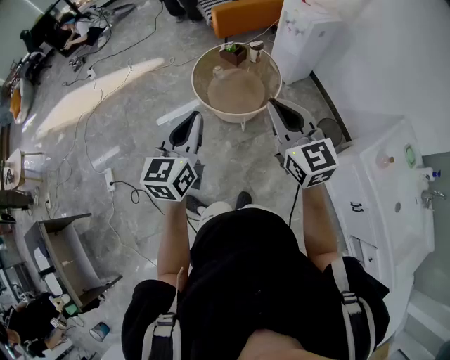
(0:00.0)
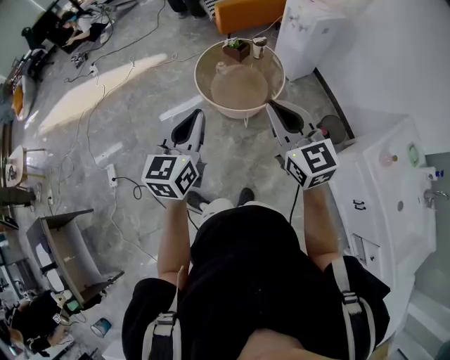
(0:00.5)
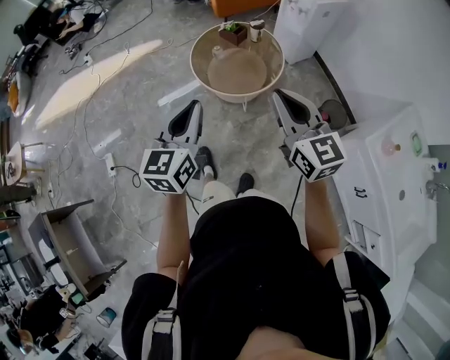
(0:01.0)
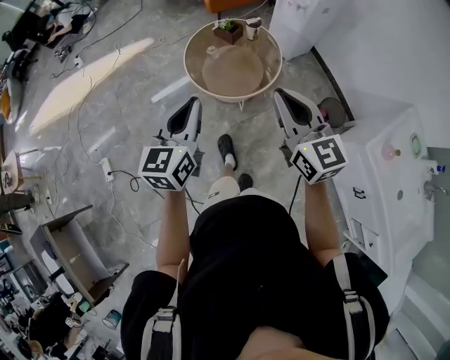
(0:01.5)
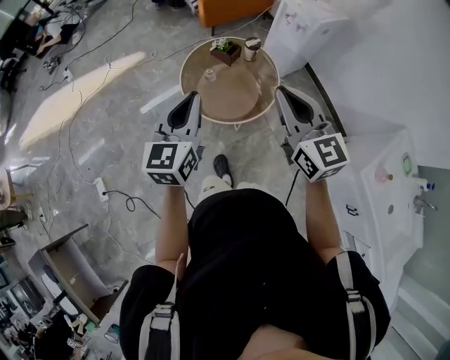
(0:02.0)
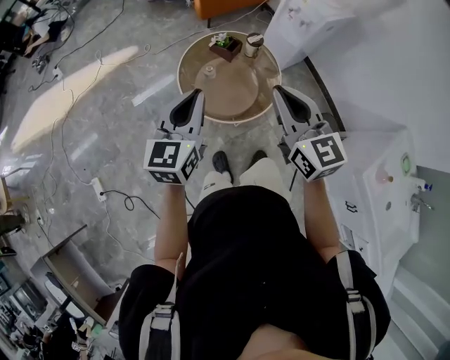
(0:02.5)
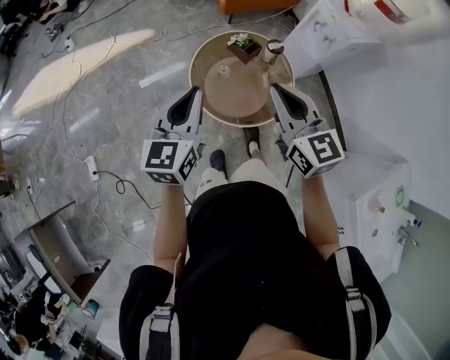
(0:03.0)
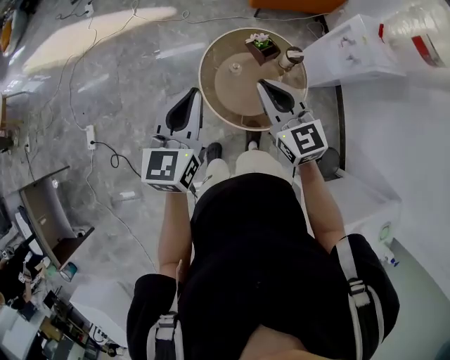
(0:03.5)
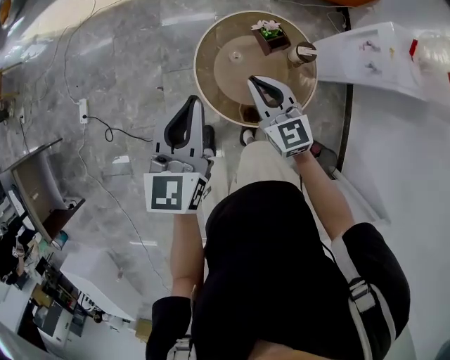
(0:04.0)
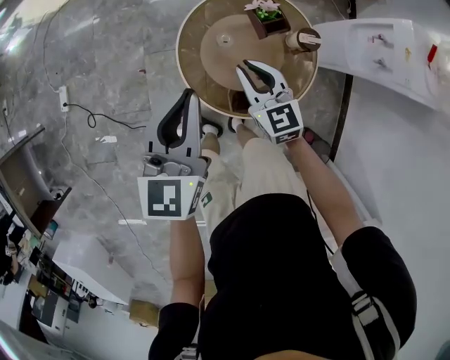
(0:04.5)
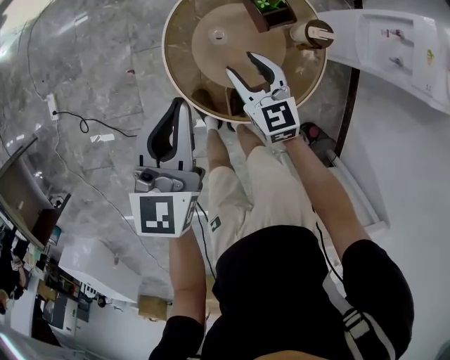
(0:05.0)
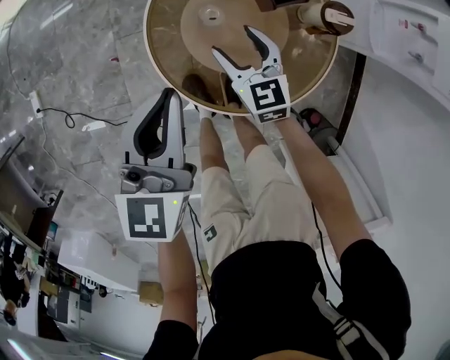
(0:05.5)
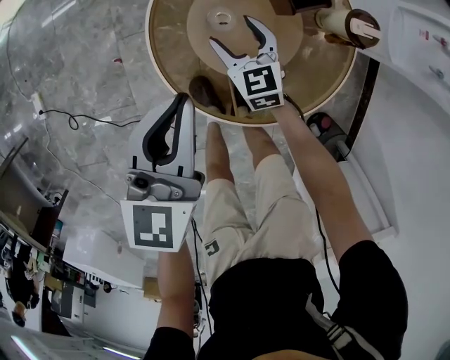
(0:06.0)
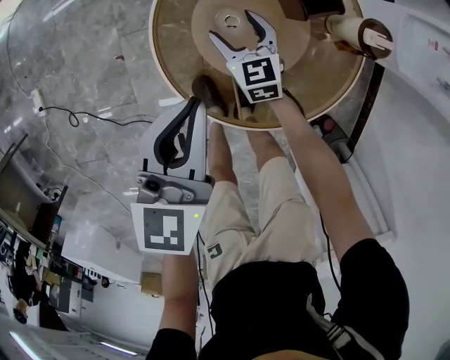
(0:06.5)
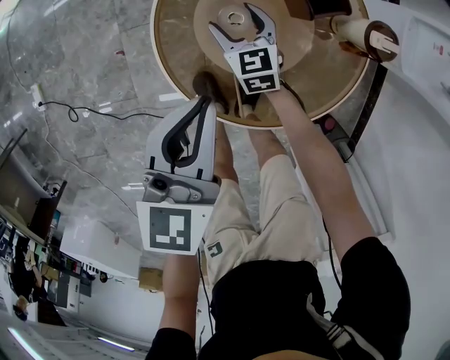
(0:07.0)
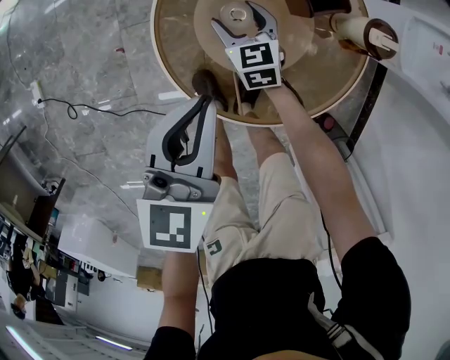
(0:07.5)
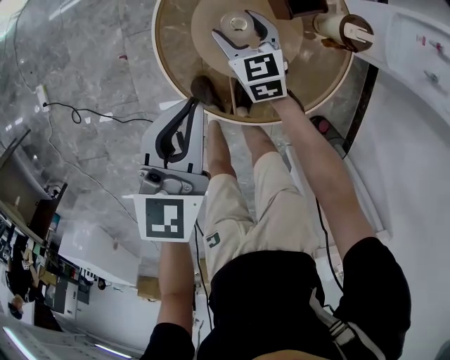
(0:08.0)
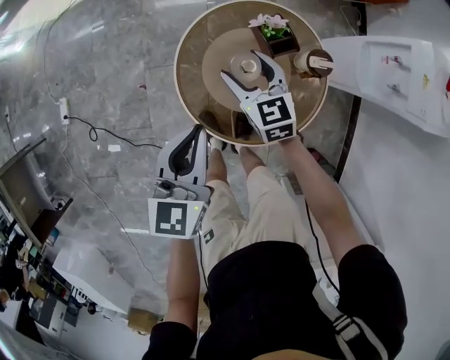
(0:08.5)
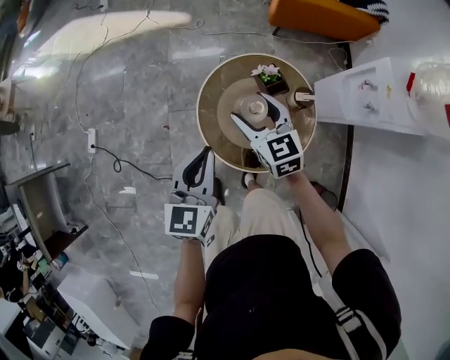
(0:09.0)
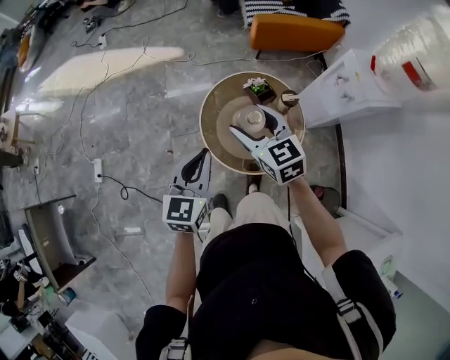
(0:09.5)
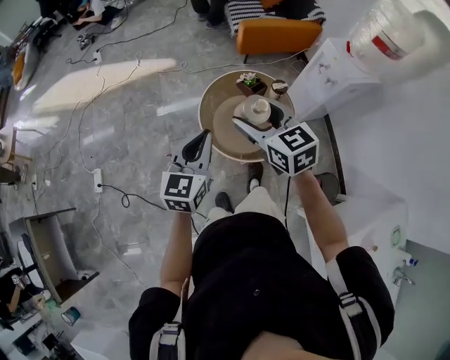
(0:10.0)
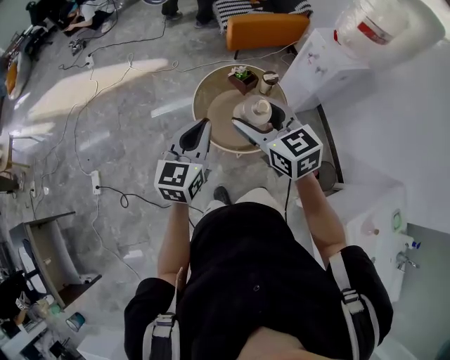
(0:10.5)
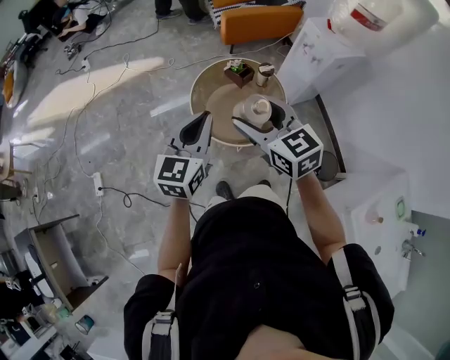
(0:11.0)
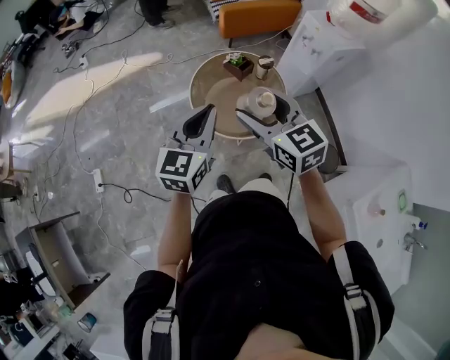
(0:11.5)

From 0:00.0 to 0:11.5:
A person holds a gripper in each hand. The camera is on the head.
From 0:00.0 to 0:02.0: Both grippers move forward, approximately 20 cm.
From 0:02.0 to 0:04.0: The left gripper moves about 20 cm, and changes its angle by about 30 degrees; the right gripper moves approximately 35 cm, and rotates approximately 40 degrees.
From 0:04.0 to 0:06.0: Both grippers travel together downward, approximately 35 cm. The right gripper opens.
From 0:06.0 to 0:07.5: The right gripper shifts by about 5 cm.
From 0:07.5 to 0:09.5: The left gripper shifts some 30 cm upward; the right gripper shifts roughly 50 cm upward.
From 0:09.5 to 0:11.5: The left gripper travels backward and upward by some 15 cm. The right gripper is displaced backward and upward by some 20 cm.

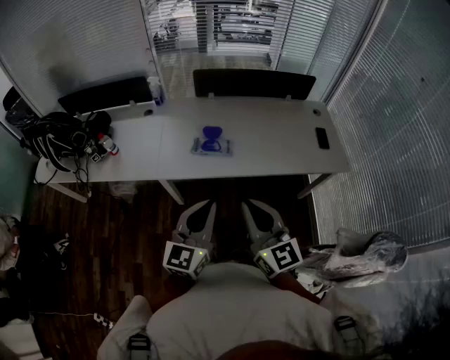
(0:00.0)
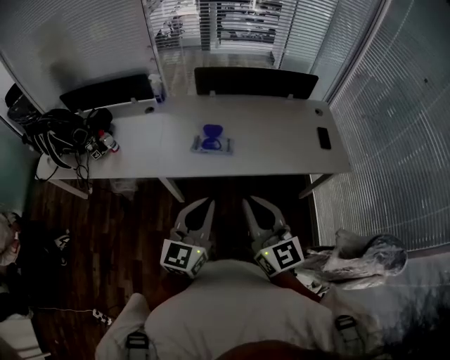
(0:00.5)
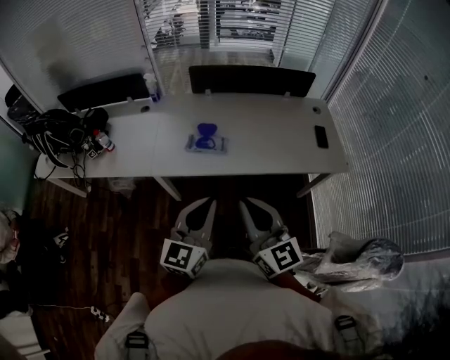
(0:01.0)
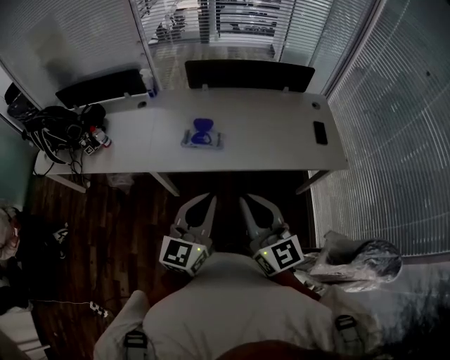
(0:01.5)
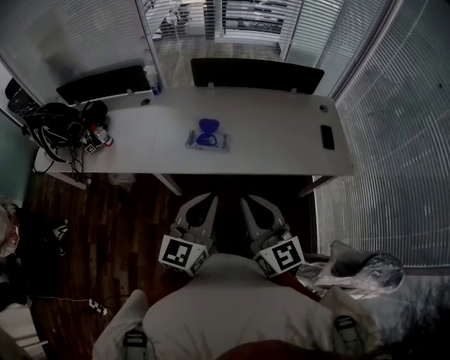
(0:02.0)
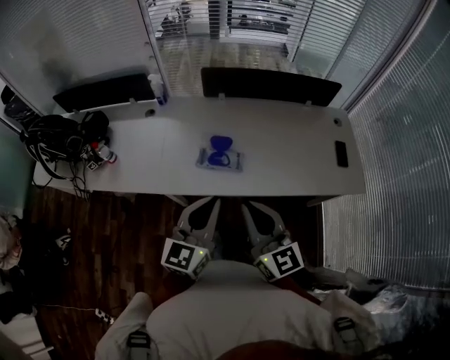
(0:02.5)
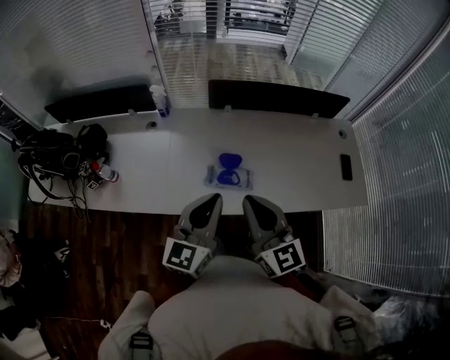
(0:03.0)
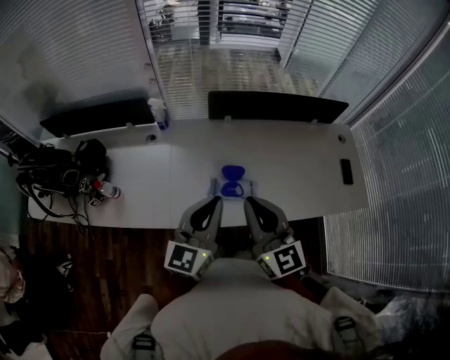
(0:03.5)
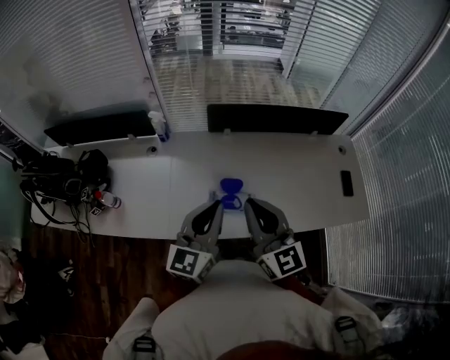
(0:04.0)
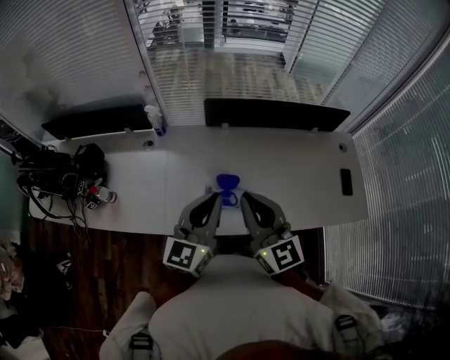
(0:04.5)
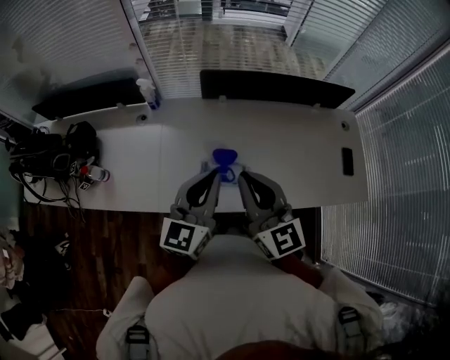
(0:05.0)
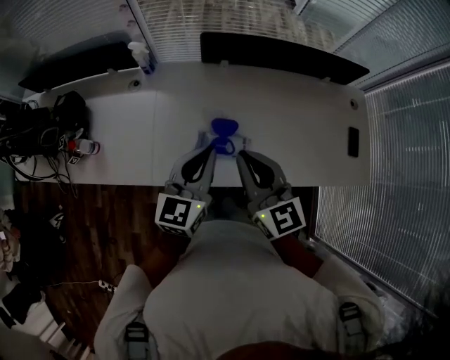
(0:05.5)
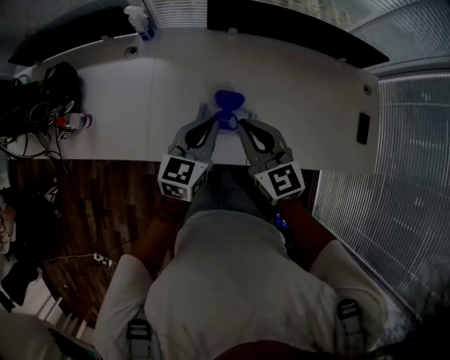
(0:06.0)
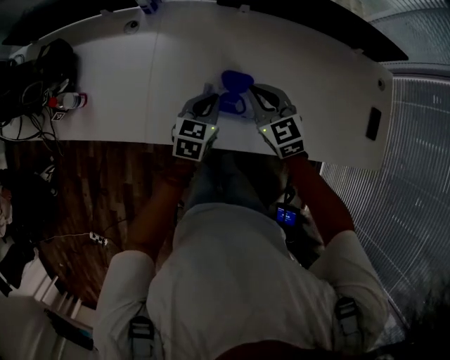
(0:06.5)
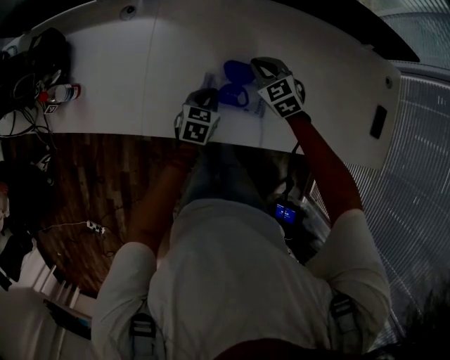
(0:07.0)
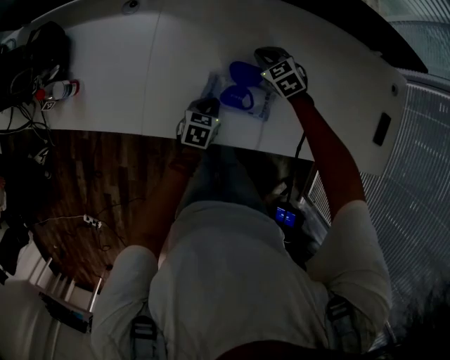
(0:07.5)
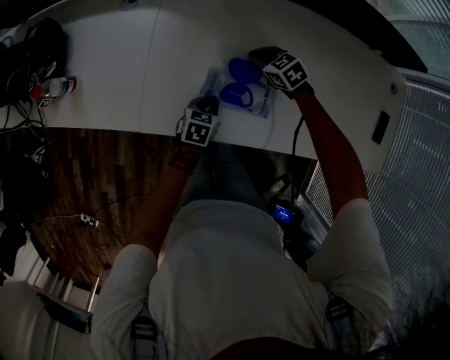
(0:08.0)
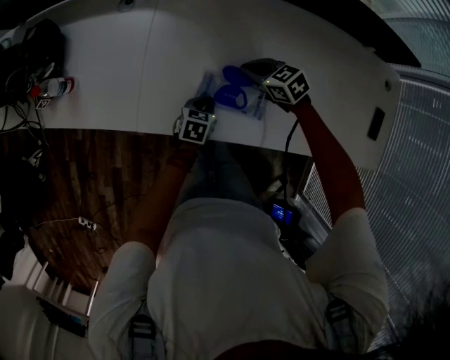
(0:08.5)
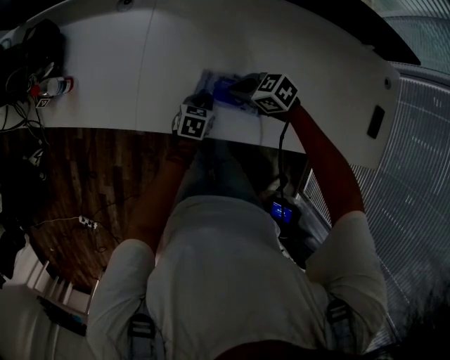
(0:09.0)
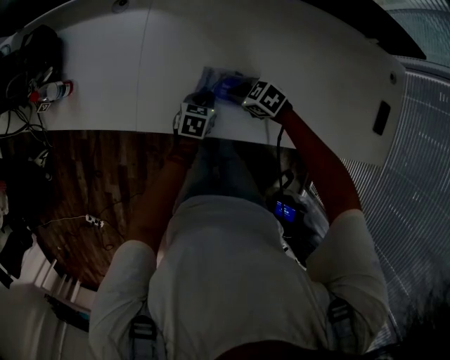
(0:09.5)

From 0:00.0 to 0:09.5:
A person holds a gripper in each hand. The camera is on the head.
From 0:00.0 to 0:02.0: The right gripper moves roughly 5 cm. The left gripper heads to the right, covering about 5 cm.
From 0:02.0 to 0:04.0: Both grippers travel together forward and to the left, some 30 cm.
From 0:04.0 to 0:05.5: Both grippers move downward, about 10 cm.
From 0:05.5 to 0:07.5: The left gripper heads downward, covering some 40 cm, and tips its fingers downward by about 40 degrees. The right gripper shifts approximately 40 cm downward and forward, and points its fingers about 40 degrees further downward.
From 0:07.5 to 0:09.5: The right gripper changes place by approximately 20 cm, and turns by some 30 degrees.

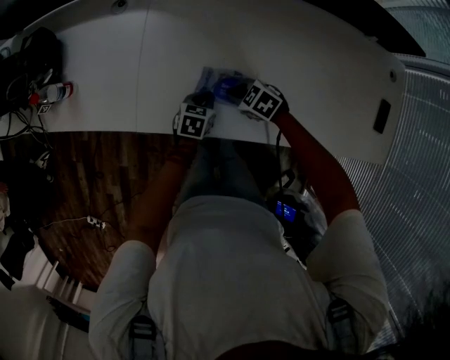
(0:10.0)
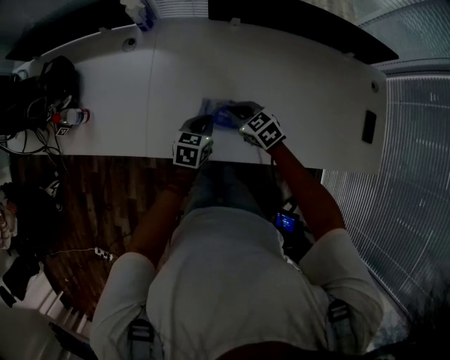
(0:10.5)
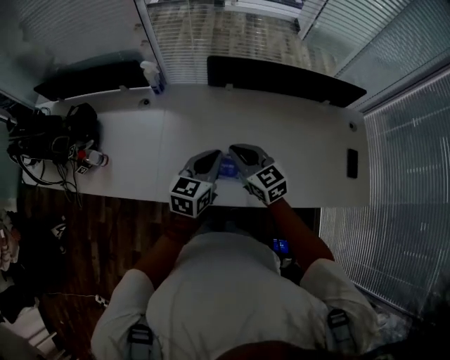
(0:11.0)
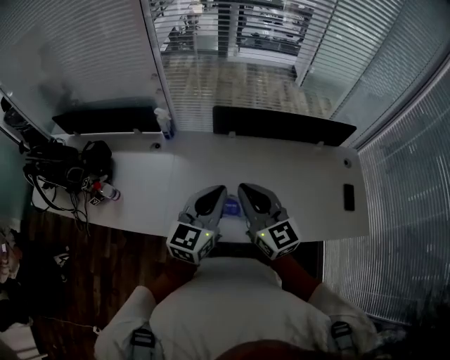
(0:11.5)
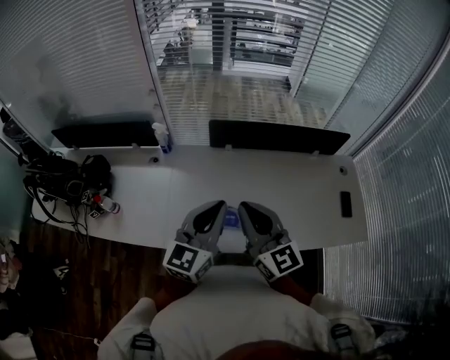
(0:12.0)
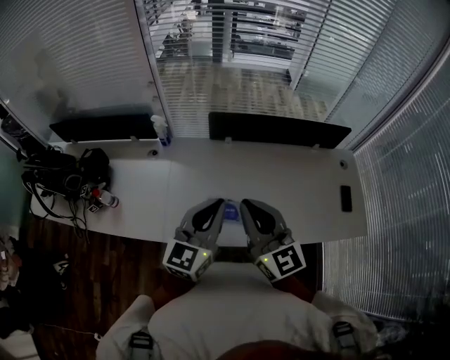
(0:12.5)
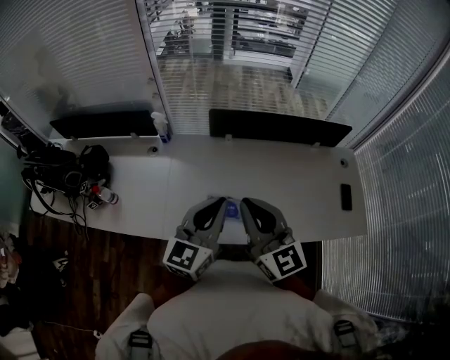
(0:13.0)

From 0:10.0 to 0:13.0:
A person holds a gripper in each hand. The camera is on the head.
From 0:10.0 to 0:11.5: Both grippers move upward, about 40 cm. The right gripper angles its fingers upward, by approximately 50 degrees. Meanwhile the left gripper tips its fingers upward by roughly 50 degrees.
From 0:11.5 to 0:13.0: The right gripper goes approximately 5 cm upward.

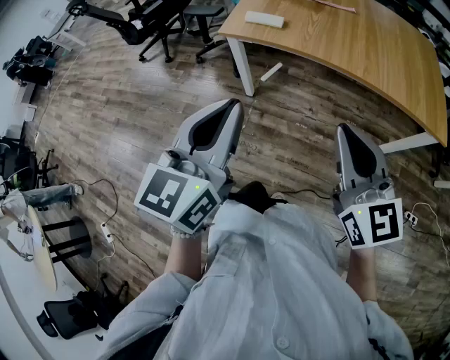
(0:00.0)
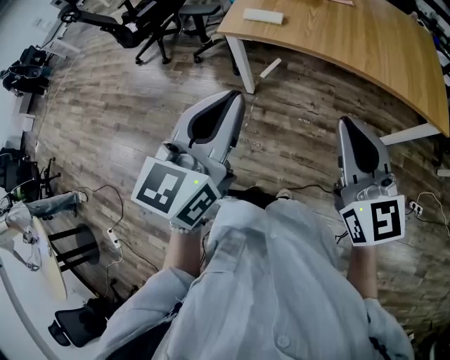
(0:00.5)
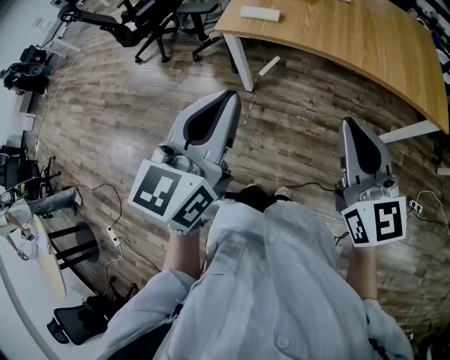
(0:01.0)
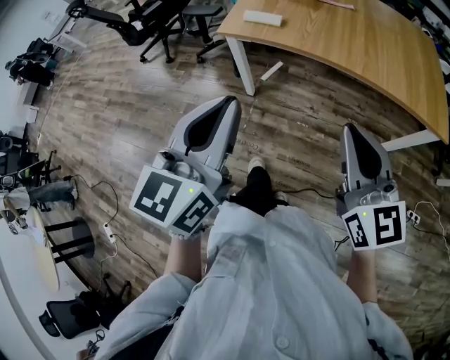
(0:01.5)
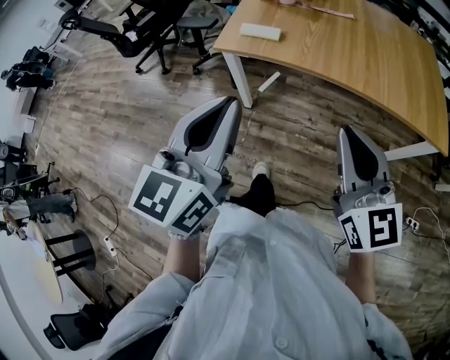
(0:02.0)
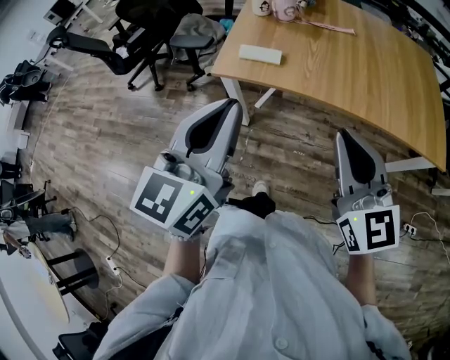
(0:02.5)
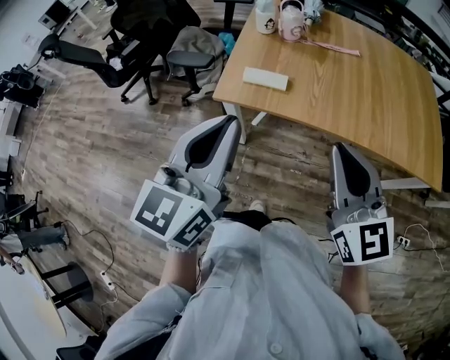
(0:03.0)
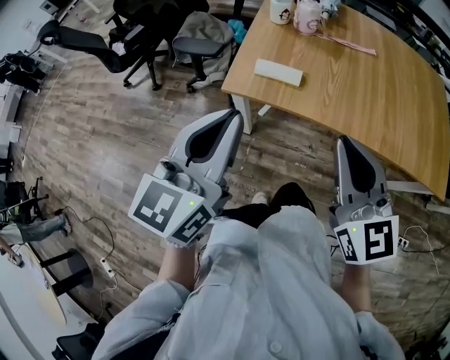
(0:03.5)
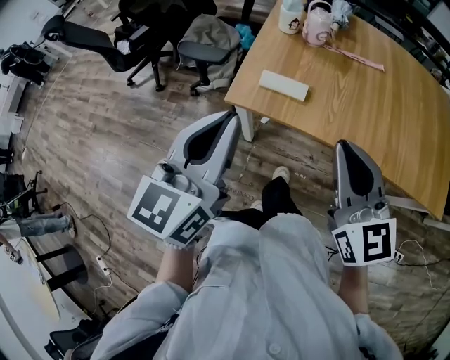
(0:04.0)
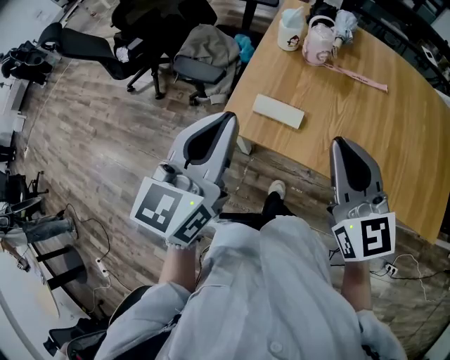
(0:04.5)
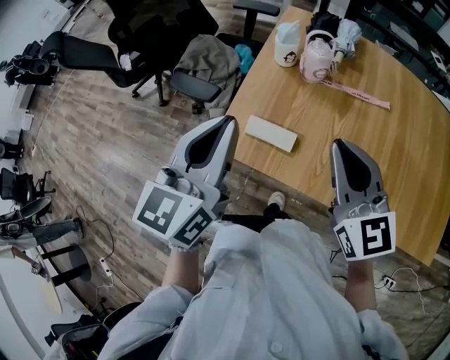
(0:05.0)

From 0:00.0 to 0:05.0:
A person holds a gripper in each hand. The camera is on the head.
From 0:00.0 to 0:02.5: Both grippers travel together forward, roughly 15 cm.
From 0:02.5 to 0:05.0: The two grippers go some 30 cm forward.
